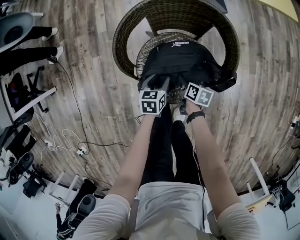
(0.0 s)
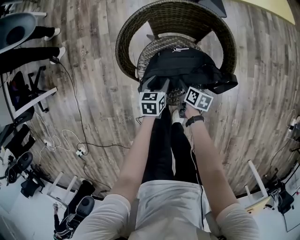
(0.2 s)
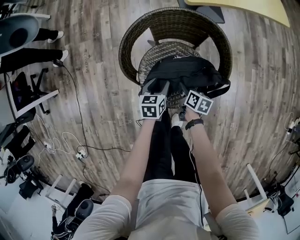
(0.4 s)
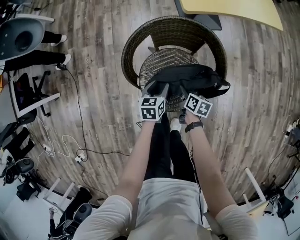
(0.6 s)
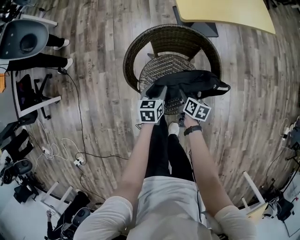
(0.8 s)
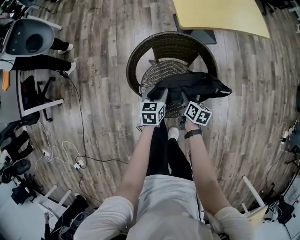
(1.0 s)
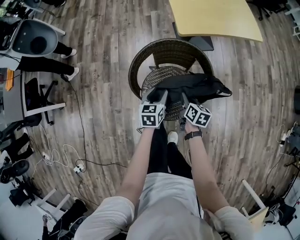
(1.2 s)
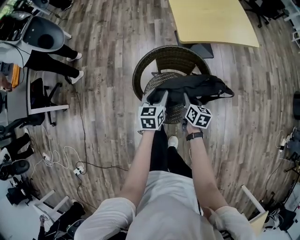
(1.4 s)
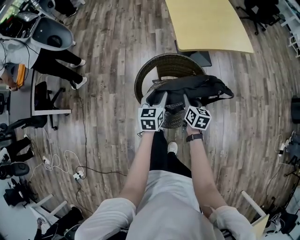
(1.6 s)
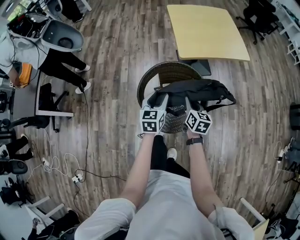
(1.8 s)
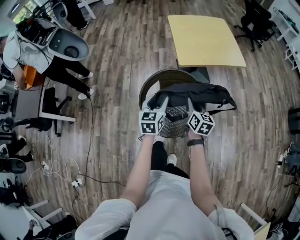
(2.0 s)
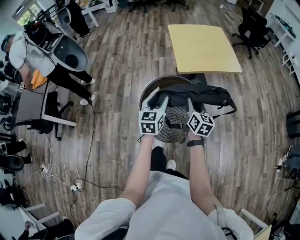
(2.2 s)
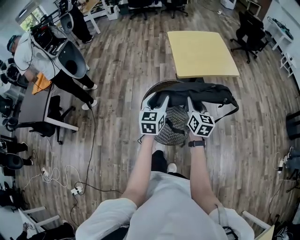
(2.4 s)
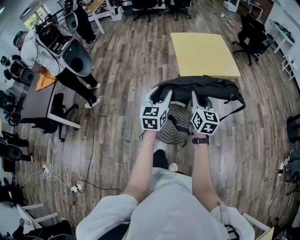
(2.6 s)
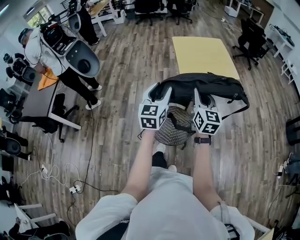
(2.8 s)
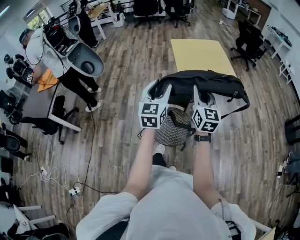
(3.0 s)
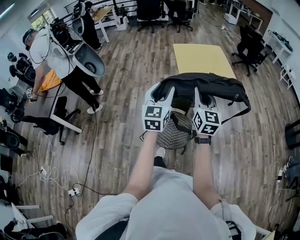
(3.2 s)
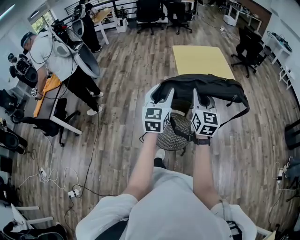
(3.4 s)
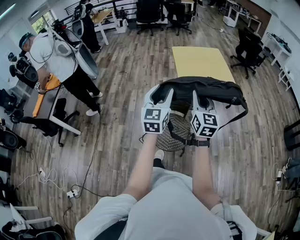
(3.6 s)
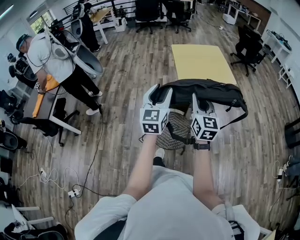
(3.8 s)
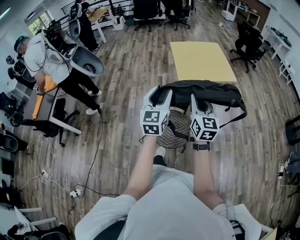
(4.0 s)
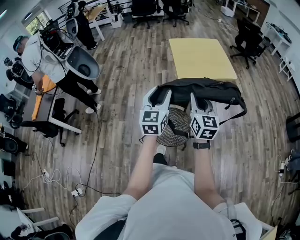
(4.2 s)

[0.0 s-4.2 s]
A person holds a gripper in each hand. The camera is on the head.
0.0 to 1.4 s: The two grippers go about 30 cm upward. The left gripper rotates approximately 20 degrees, while the right gripper turns by roughly 30 degrees.
1.4 to 2.8 s: Both grippers travel together upward, about 35 cm. The right gripper tilts its fingers roughly 30 degrees upward. The left gripper changes its angle by roughly 30 degrees.
2.8 to 4.2 s: There are only small adjustments of the grippers.
